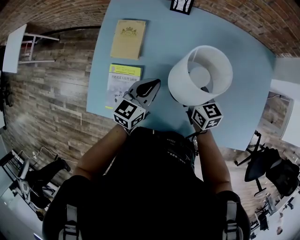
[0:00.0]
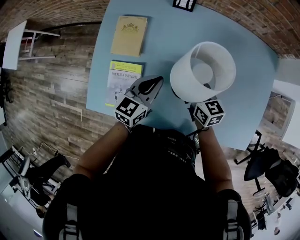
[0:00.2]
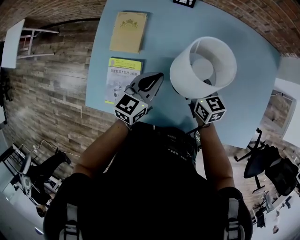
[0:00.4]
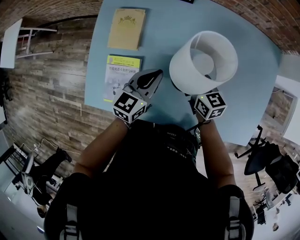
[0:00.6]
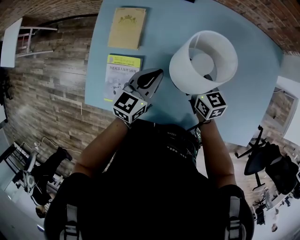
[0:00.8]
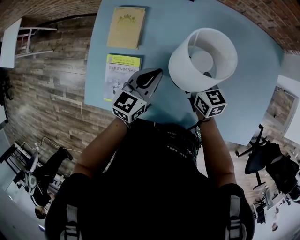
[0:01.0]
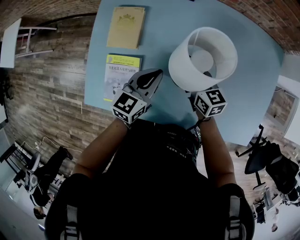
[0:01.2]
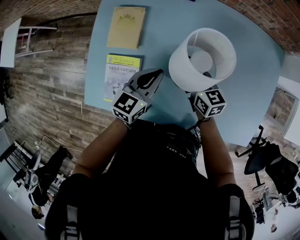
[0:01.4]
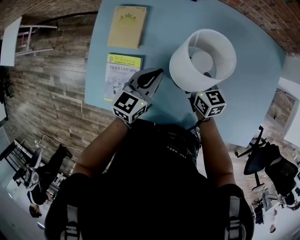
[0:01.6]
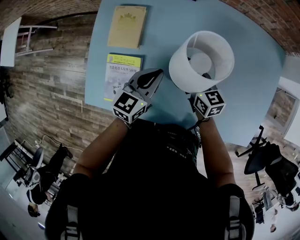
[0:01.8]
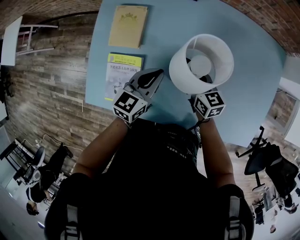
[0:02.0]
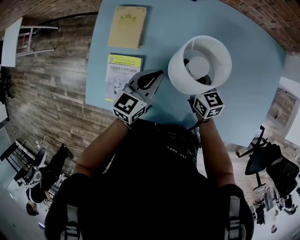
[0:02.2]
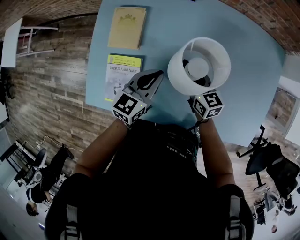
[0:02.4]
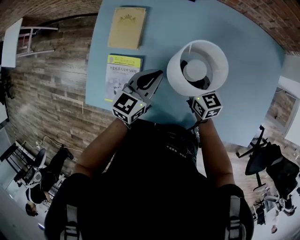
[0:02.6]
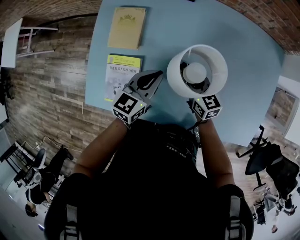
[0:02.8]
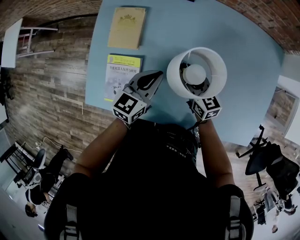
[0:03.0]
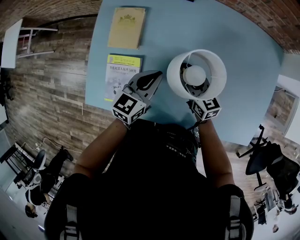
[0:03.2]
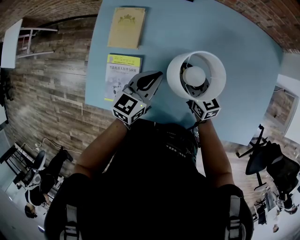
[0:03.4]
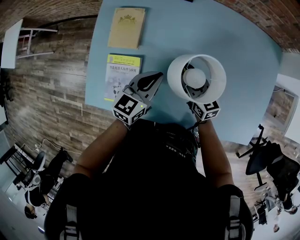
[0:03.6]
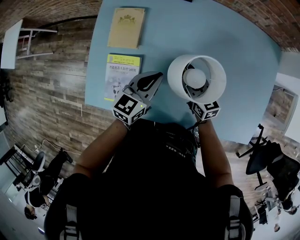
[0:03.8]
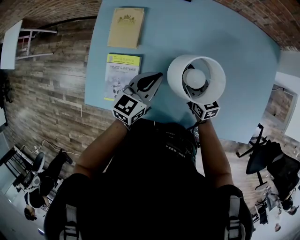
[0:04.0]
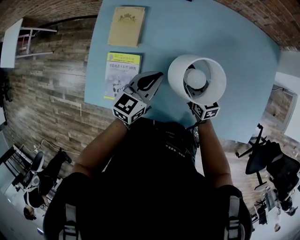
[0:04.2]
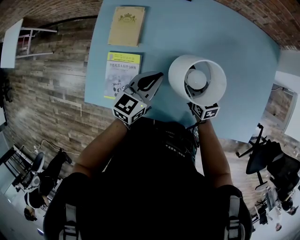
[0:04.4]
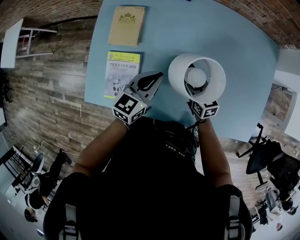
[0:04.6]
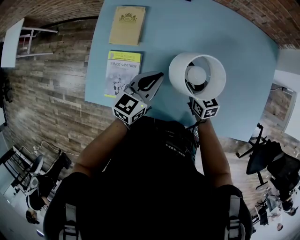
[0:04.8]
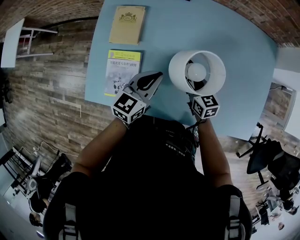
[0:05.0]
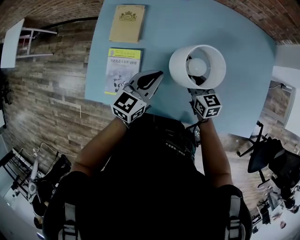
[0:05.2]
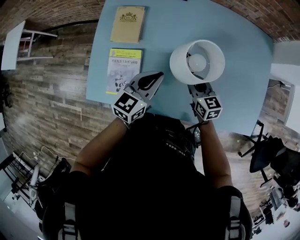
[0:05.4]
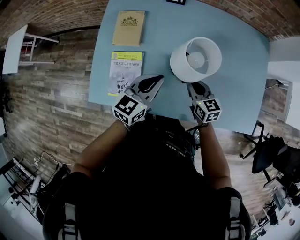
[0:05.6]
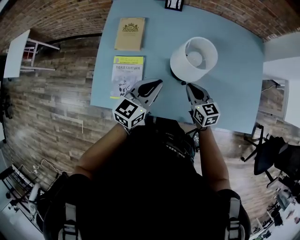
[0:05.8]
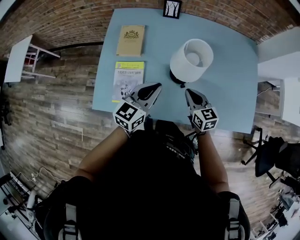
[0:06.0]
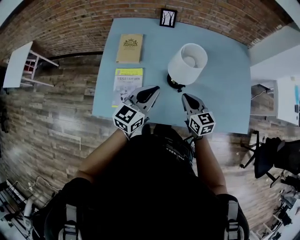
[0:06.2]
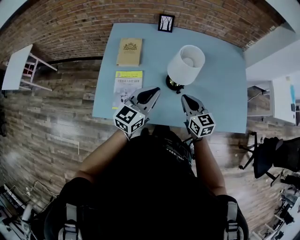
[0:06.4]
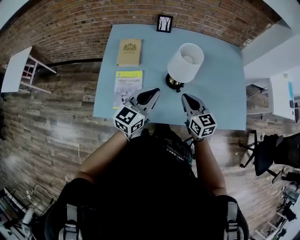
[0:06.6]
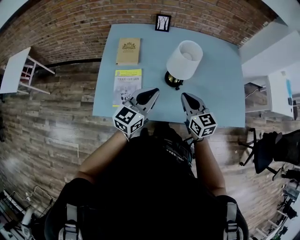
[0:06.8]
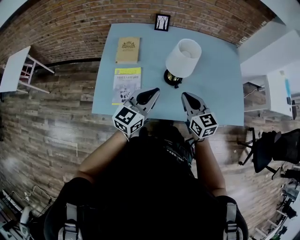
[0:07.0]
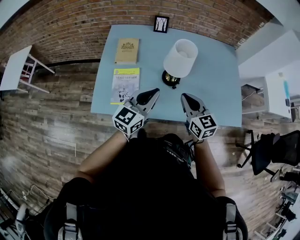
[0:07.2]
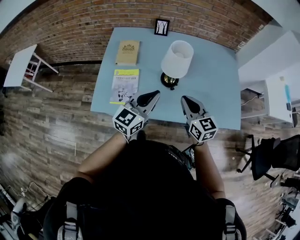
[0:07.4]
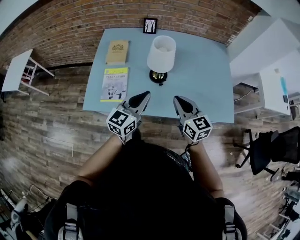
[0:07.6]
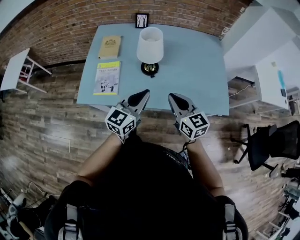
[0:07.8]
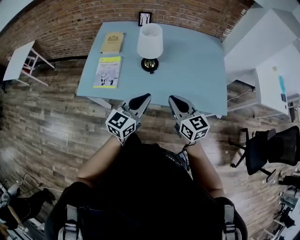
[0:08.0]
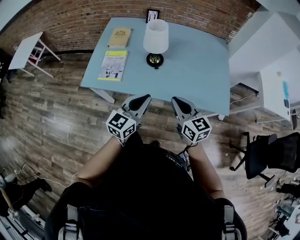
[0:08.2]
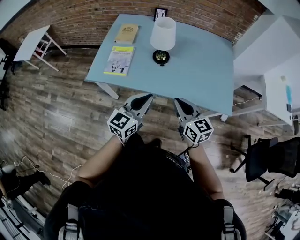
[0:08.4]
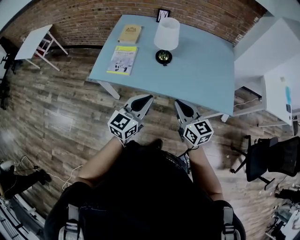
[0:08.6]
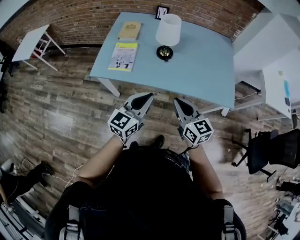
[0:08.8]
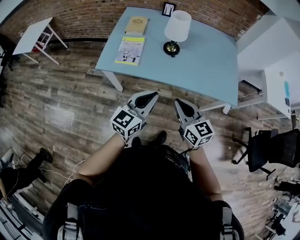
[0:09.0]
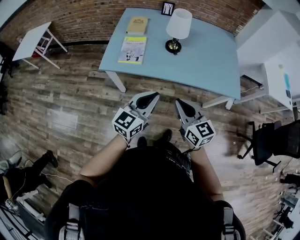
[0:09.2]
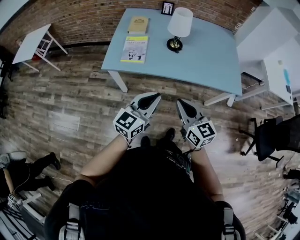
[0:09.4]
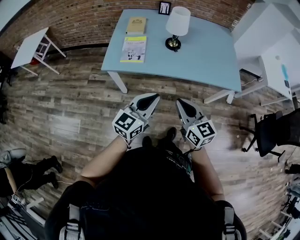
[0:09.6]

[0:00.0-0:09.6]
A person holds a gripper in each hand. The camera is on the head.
0:00.0 to 0:01.6: The right gripper ends up approximately 5 cm from where it was.
0:01.6 to 0:03.2: There are only small adjustments of the grippers.
0:03.2 to 0:04.8: The right gripper ends up approximately 5 cm from where it was.
0:04.8 to 0:06.4: The two grippers go some 20 cm backward and upward. The right gripper closes its fingers.
0:06.4 to 0:08.0: The left gripper moves backward and to the right, some 25 cm, while the right gripper travels backward, to the right and upward by roughly 25 cm.
0:08.0 to 0:09.6: The grippers both shift backward and to the left by approximately 30 cm.

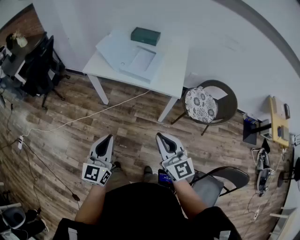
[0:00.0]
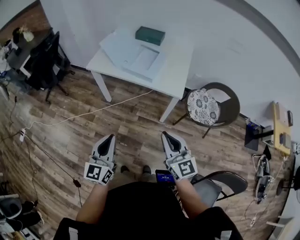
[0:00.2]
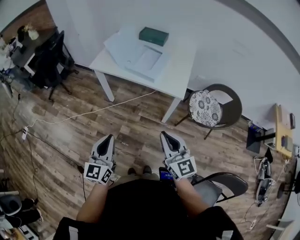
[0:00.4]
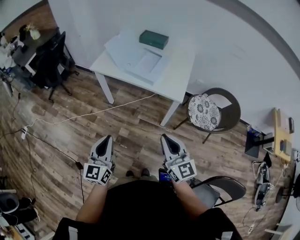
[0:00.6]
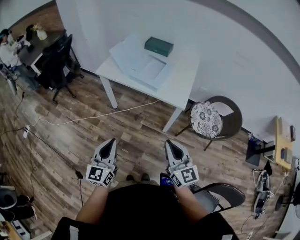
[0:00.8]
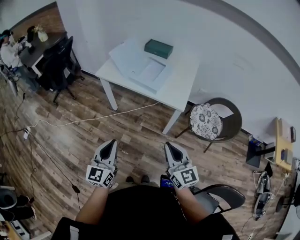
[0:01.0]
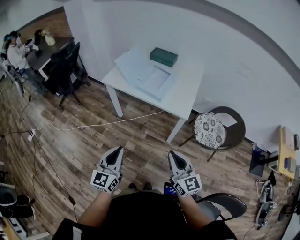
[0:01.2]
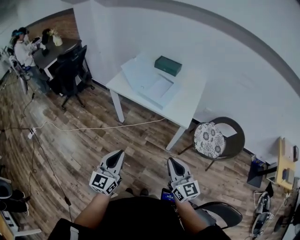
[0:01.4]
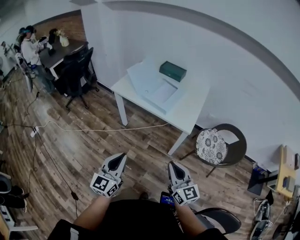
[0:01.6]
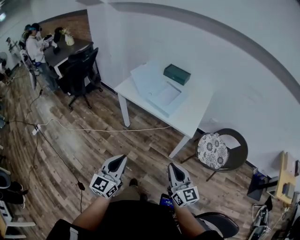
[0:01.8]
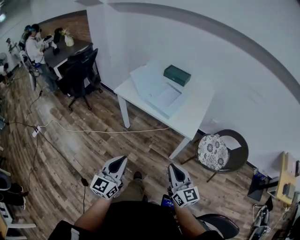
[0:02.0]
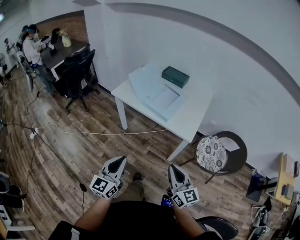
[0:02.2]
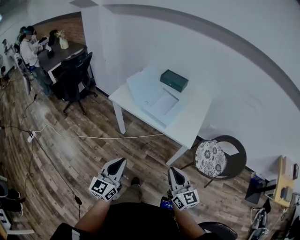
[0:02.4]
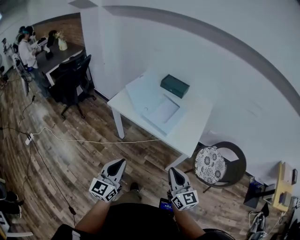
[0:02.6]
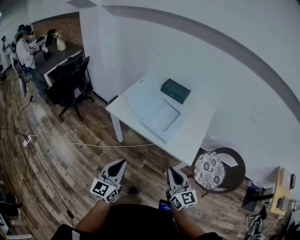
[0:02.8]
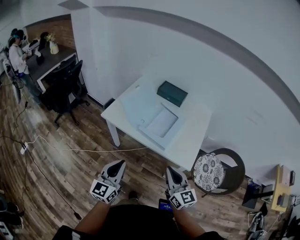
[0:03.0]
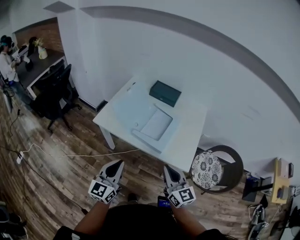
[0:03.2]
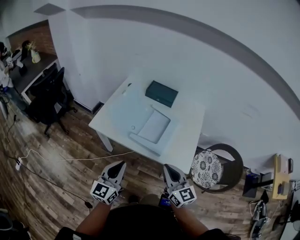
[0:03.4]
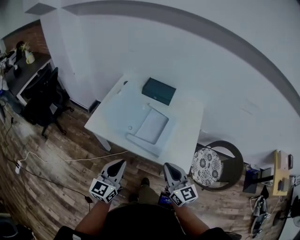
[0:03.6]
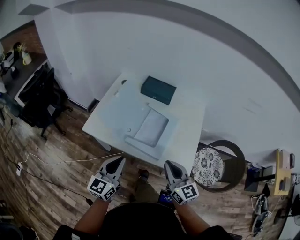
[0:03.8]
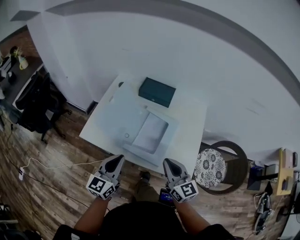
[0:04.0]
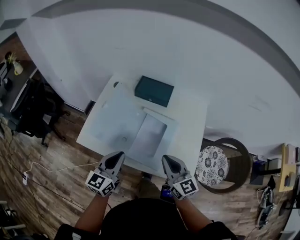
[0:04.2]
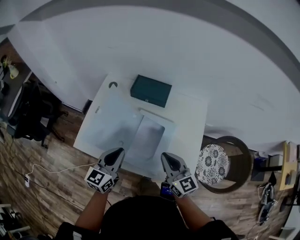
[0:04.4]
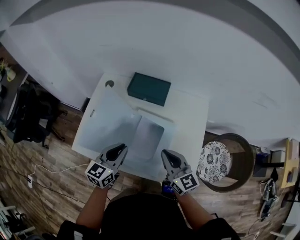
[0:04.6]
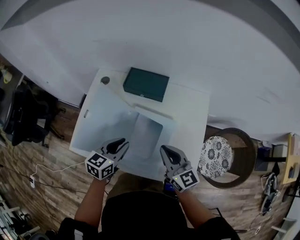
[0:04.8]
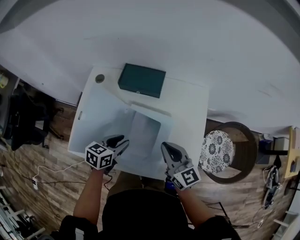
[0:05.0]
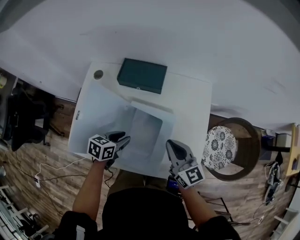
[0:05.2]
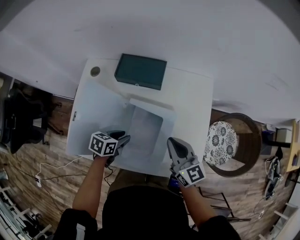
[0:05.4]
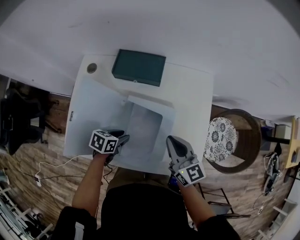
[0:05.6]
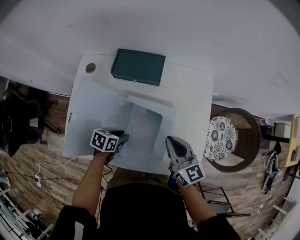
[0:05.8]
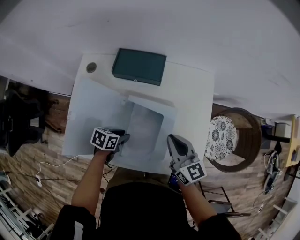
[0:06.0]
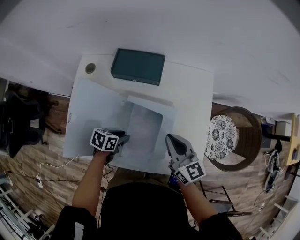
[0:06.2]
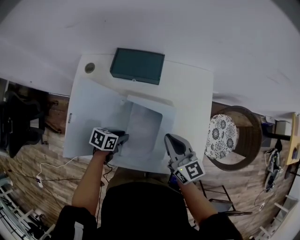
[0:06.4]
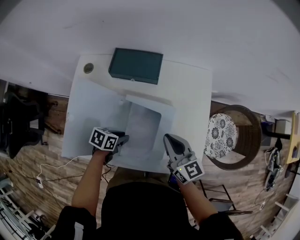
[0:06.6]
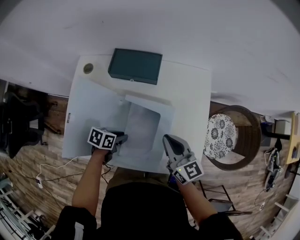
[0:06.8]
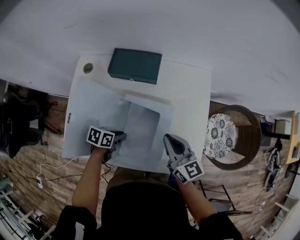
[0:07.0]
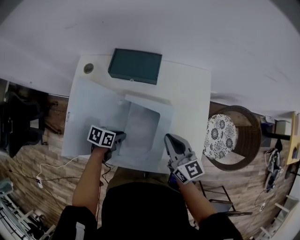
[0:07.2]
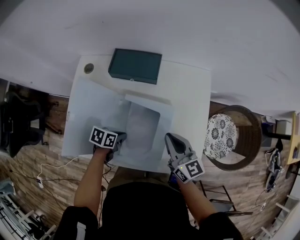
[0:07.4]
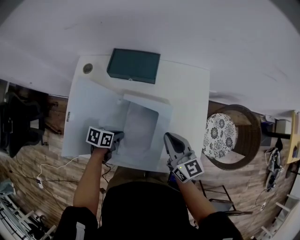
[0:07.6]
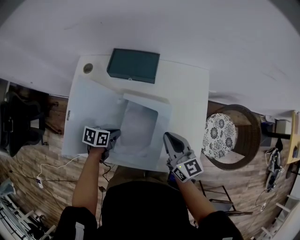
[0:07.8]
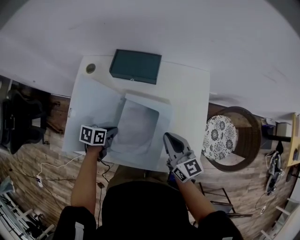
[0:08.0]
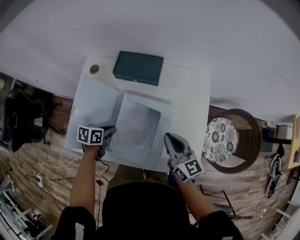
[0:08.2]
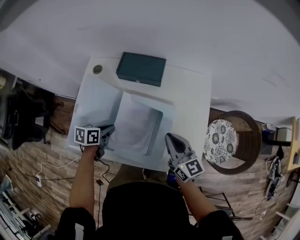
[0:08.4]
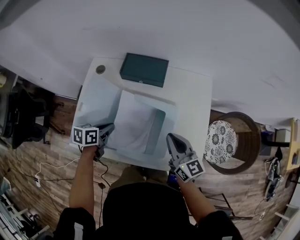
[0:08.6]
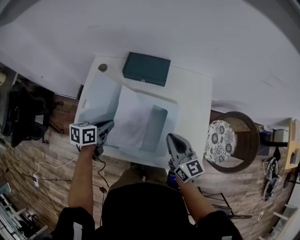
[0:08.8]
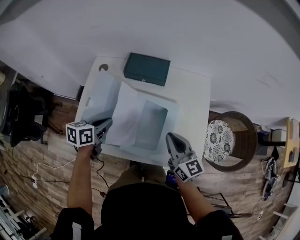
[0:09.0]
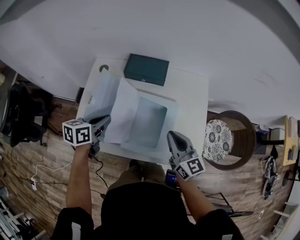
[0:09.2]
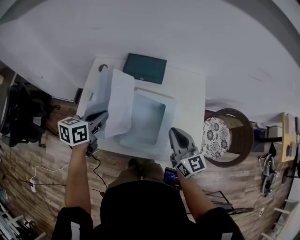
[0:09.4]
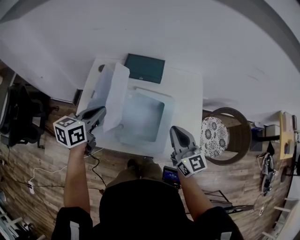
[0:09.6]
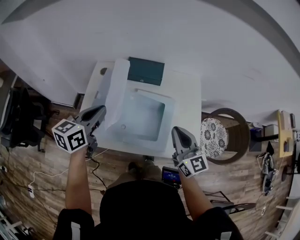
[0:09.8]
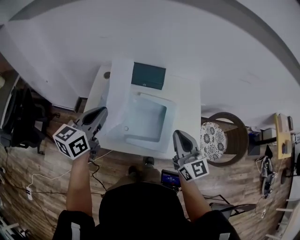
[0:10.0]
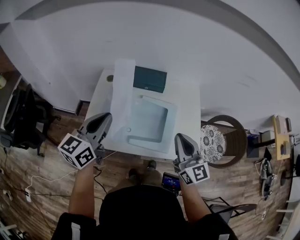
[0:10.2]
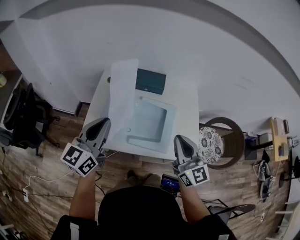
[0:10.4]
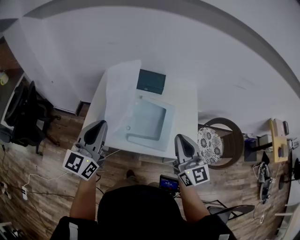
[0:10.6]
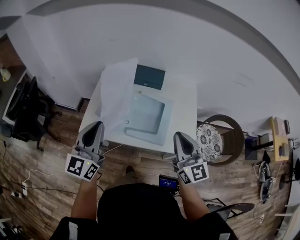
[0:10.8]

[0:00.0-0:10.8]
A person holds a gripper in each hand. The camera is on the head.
0:00.0 to 0:01.6: The grippers both shift to the right by about 5 cm.
0:01.6 to 0:03.0: The grippers both shift forward by roughly 25 cm.
0:03.0 to 0:04.6: The two grippers go about 35 cm forward. The left gripper swivels approximately 30 degrees.
0:04.6 to 0:06.2: The right gripper heads downward, covering some 5 cm. The left gripper travels downward by roughly 20 cm, angles its fingers downward, by some 40 degrees, and opens up.
0:06.2 to 0:07.8: The left gripper closes its fingers.
0:07.8 to 0:09.2: The left gripper moves upward and to the left, roughly 20 cm, and swivels roughly 30 degrees, while the right gripper shifts about 10 cm upward and backward.
0:09.2 to 0:10.8: The left gripper is displaced upward and backward by about 30 cm, and tips its fingers upward by roughly 40 degrees; the right gripper heads backward and upward, covering some 20 cm.

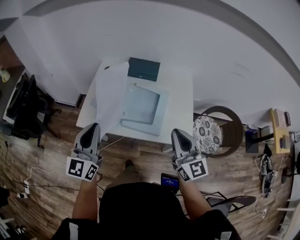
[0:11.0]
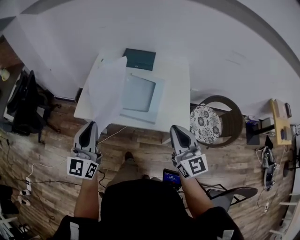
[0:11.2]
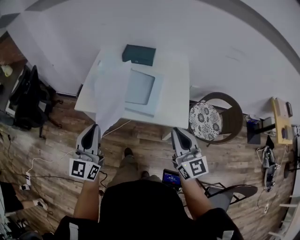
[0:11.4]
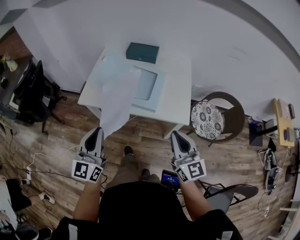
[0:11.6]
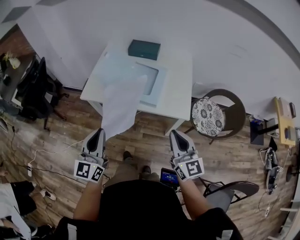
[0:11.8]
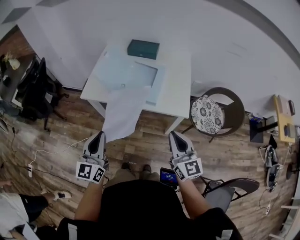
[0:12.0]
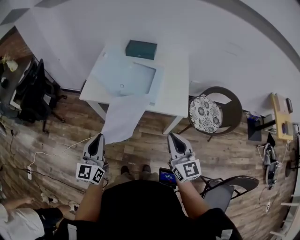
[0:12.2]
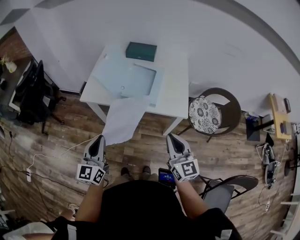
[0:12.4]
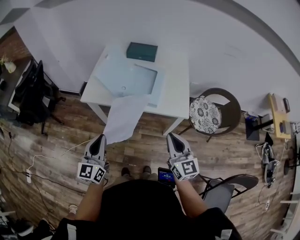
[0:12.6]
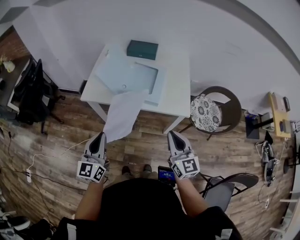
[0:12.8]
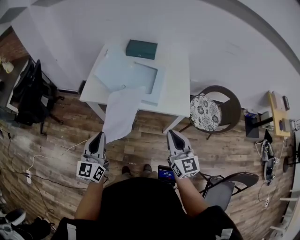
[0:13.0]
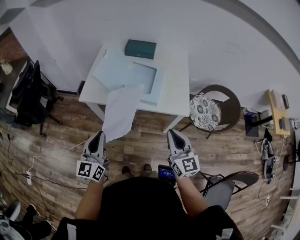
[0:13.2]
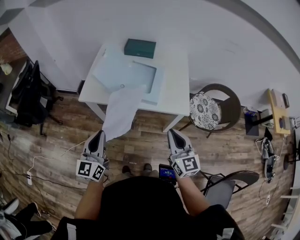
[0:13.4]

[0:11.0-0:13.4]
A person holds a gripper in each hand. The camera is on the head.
0:11.0 to 0:12.2: The right gripper shifts some 20 cm backward. Meanwhile the left gripper is displaced backward and downward by about 25 cm.
0:12.2 to 0:13.4: The grippers move only a little.

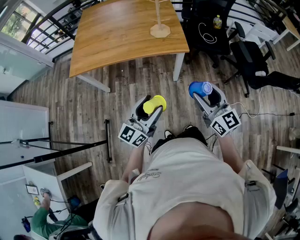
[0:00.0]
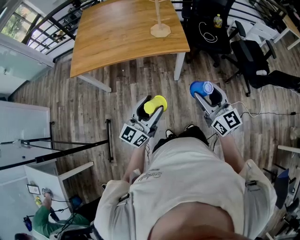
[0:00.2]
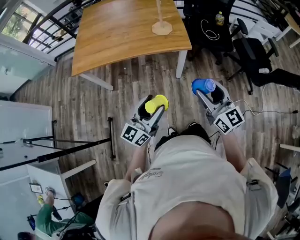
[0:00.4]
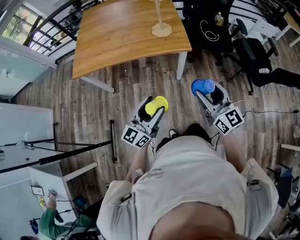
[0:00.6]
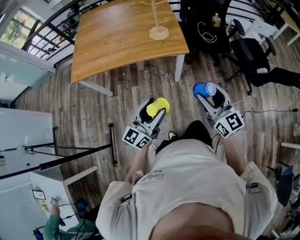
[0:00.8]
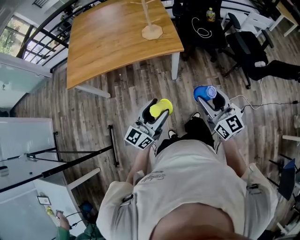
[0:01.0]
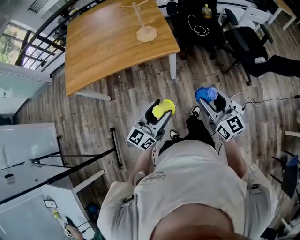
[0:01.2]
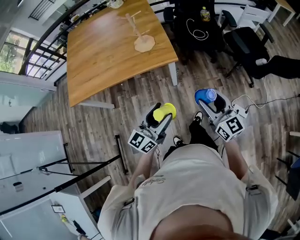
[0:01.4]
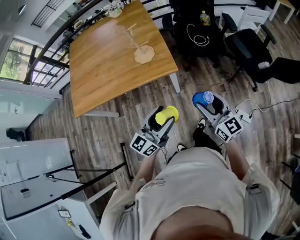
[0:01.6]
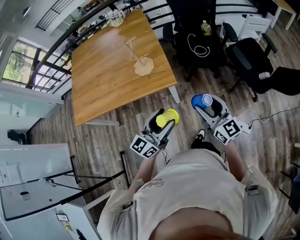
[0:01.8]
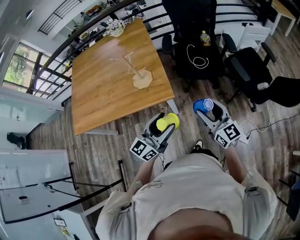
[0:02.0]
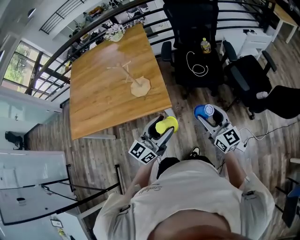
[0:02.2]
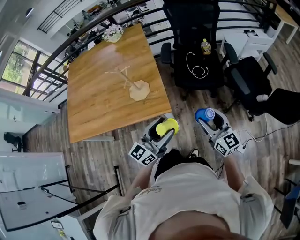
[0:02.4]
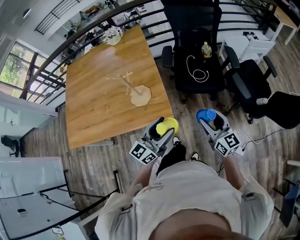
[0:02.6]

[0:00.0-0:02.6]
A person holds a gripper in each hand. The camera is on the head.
0:00.0 to 0:01.2: The left gripper travels to the right and forward by about 10 cm. The right gripper goes some 10 cm to the right.
0:01.2 to 0:02.6: The grippers both shift forward by roughly 30 cm.
